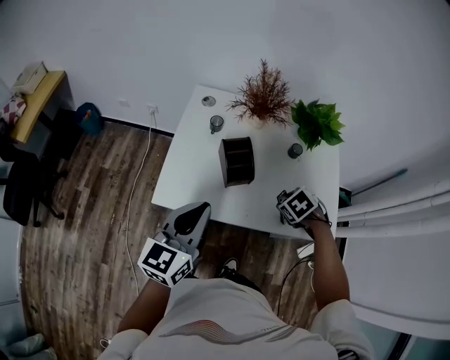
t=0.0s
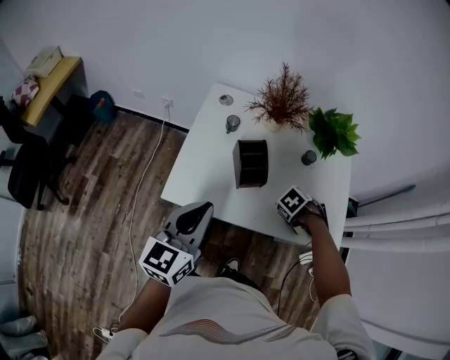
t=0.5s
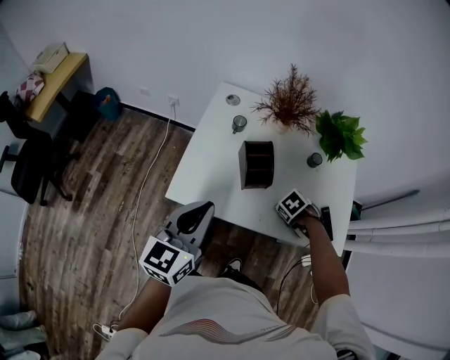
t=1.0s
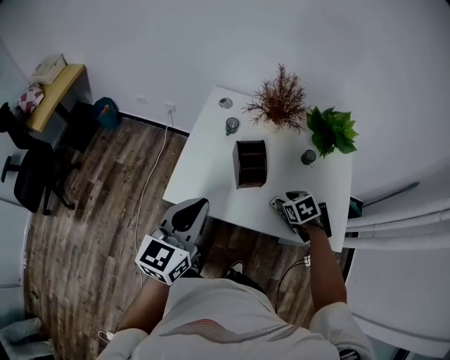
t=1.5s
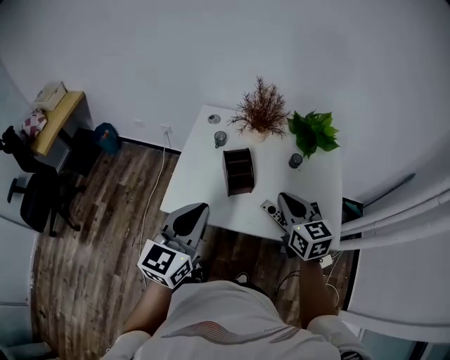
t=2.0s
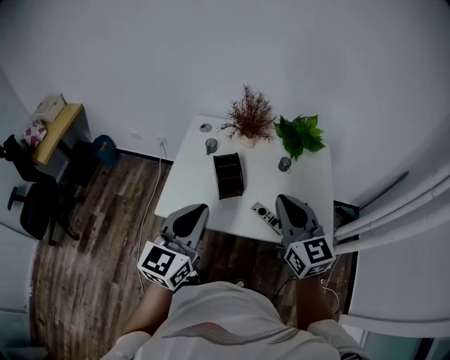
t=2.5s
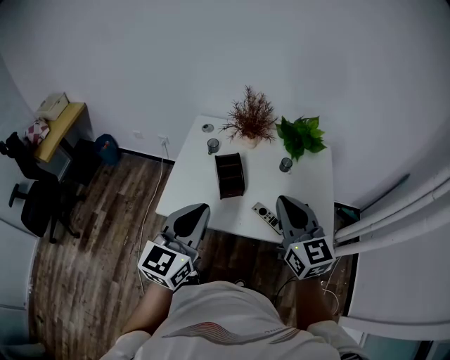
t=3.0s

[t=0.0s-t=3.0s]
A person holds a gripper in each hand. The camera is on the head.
t=0.0s to t=1.5s: The right gripper goes downward and returns, approximately 10 cm each way.
t=1.5s to t=3.0s: The left gripper moves to the right and upward, some 10 cm; the right gripper heads upward, covering approximately 25 cm, angles its fingers upward, by approximately 60 degrees, and closes up.

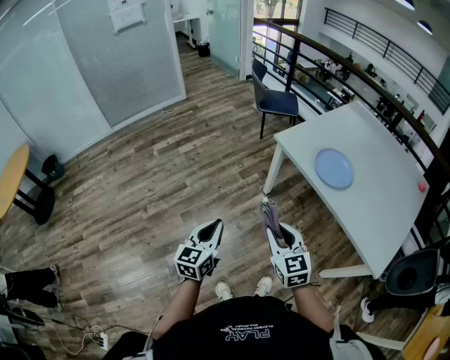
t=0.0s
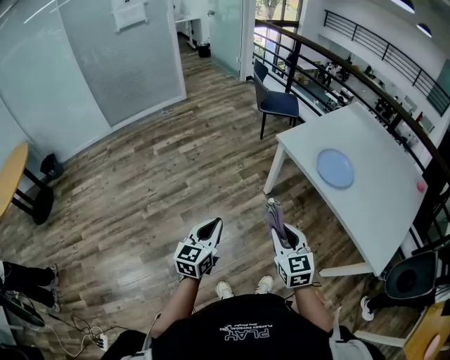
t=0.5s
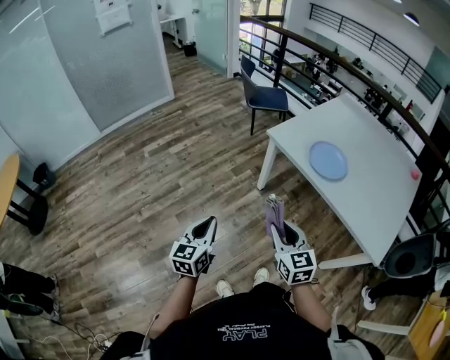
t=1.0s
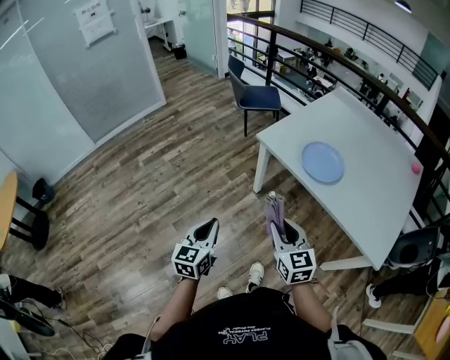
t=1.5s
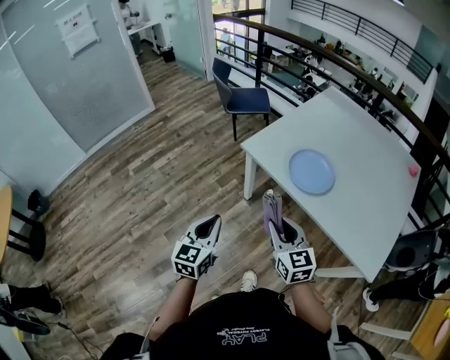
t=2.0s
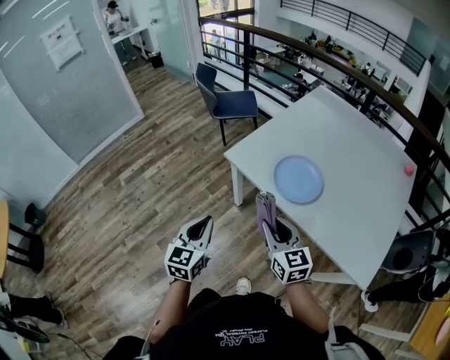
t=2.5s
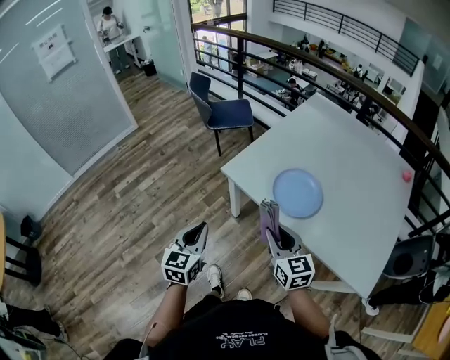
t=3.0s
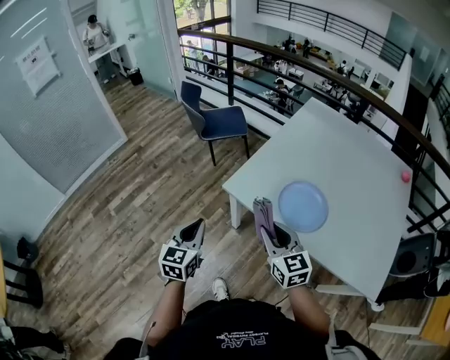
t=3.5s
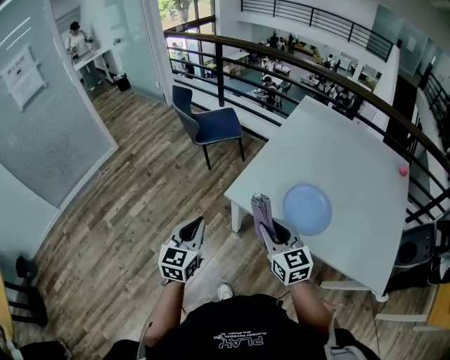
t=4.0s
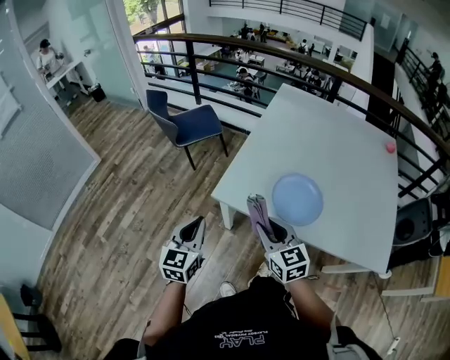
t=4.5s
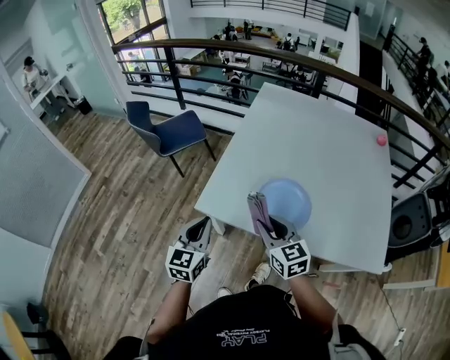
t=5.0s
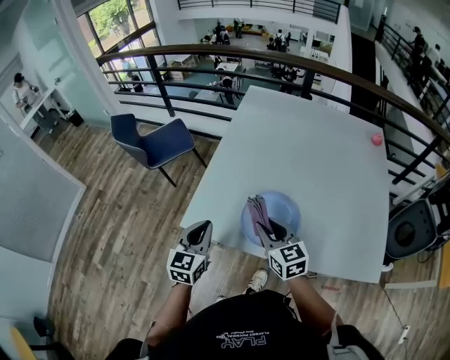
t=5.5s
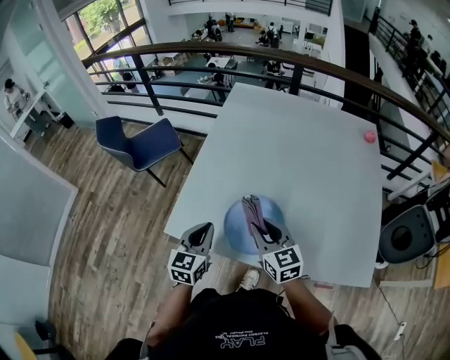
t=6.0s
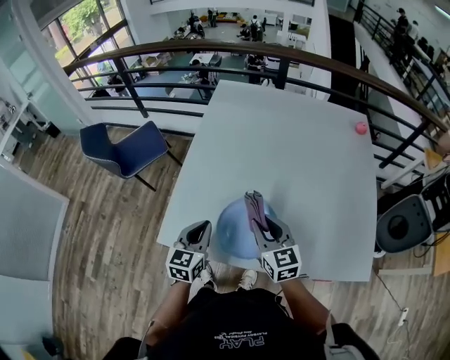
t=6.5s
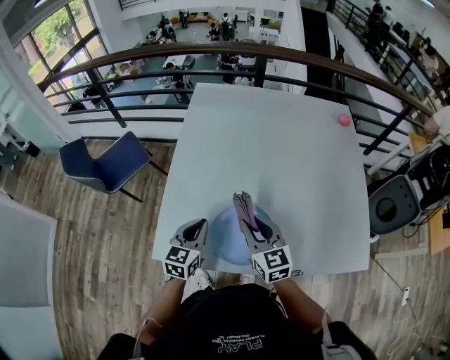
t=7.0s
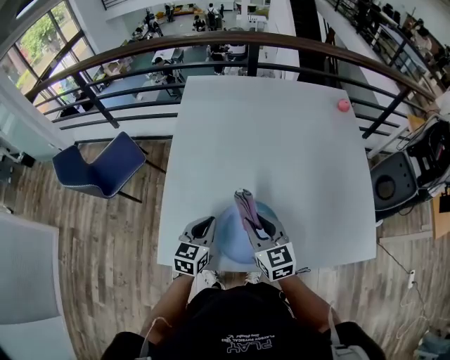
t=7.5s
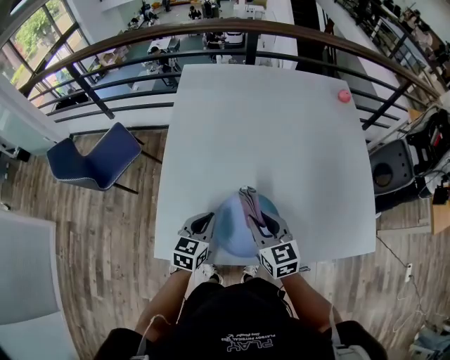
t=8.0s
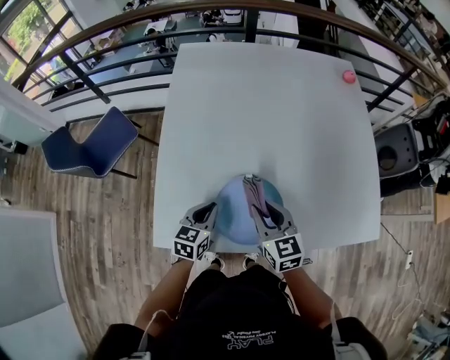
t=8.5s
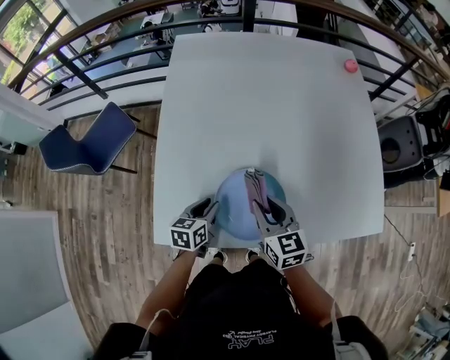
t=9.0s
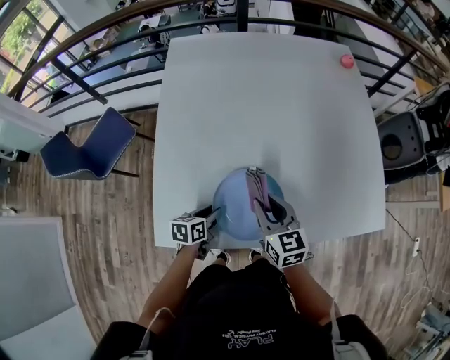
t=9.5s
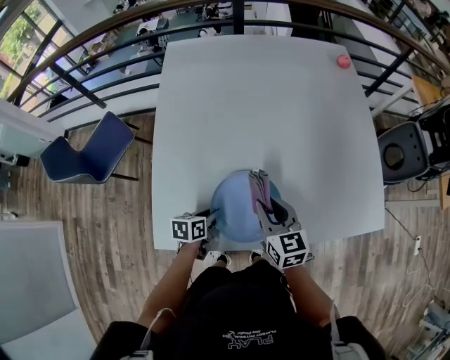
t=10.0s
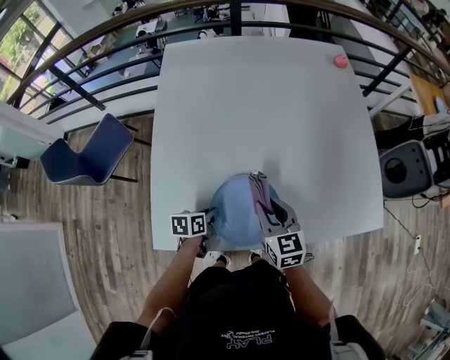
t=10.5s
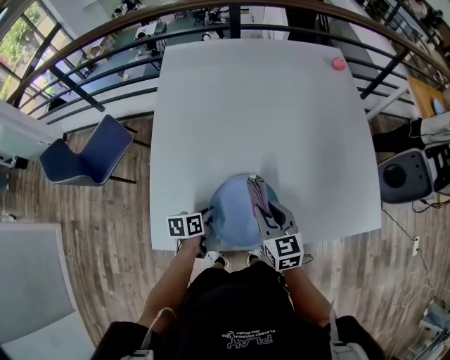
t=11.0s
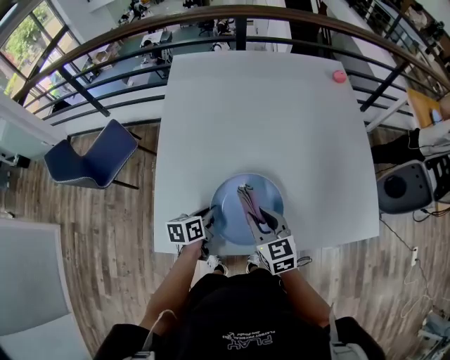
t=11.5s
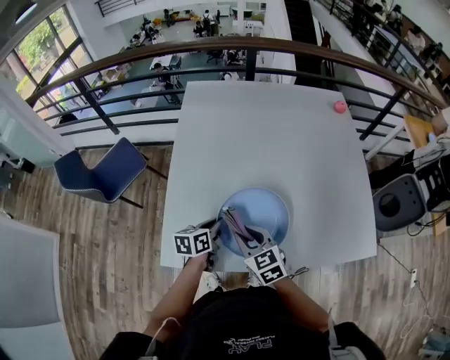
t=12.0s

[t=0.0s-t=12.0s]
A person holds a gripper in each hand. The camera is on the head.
t=0.0s to t=2.0s: Both grippers move forward and to the right, some 15 cm.
t=2.0s to t=4.0s: Both grippers travel together forward, some 25 cm.
t=4.0s to t=6.0s: Both grippers travel together to the right and forward, approximately 30 cm. The left gripper turns by roughly 20 degrees.
t=6.0s to t=8.0s: The right gripper goes approximately 5 cm forward. The left gripper moves forward and downward, some 15 cm, and changes its angle by roughly 20 degrees.
t=8.0s to t=10.0s: The left gripper moves downward, approximately 10 cm, and swivels approximately 40 degrees, while the right gripper changes place by some 5 cm.
t=10.0s to t=12.0s: The right gripper heads to the left and backward, covering approximately 10 cm, and swivels roughly 20 degrees. Meanwhile the left gripper moves upward, about 10 cm.

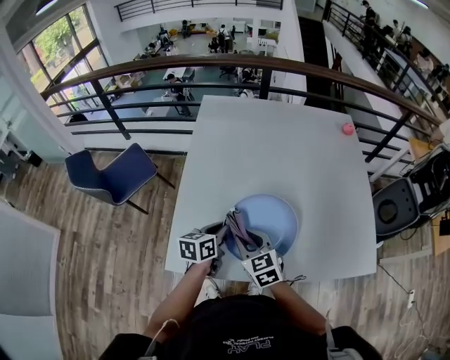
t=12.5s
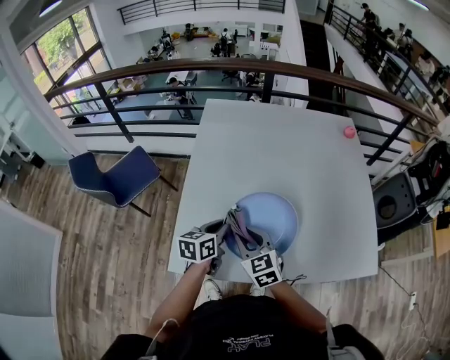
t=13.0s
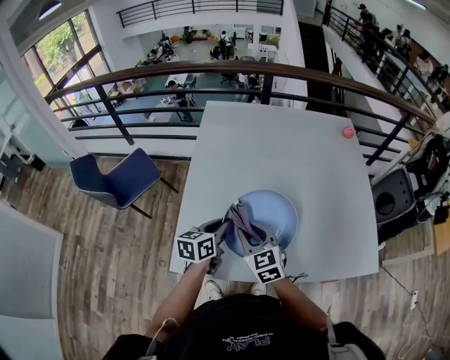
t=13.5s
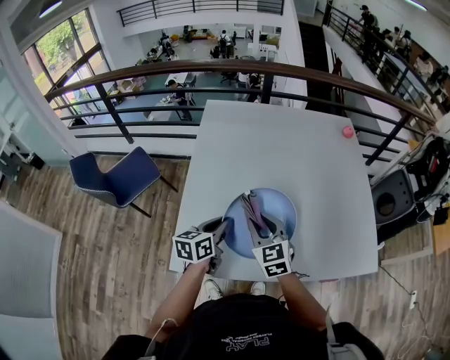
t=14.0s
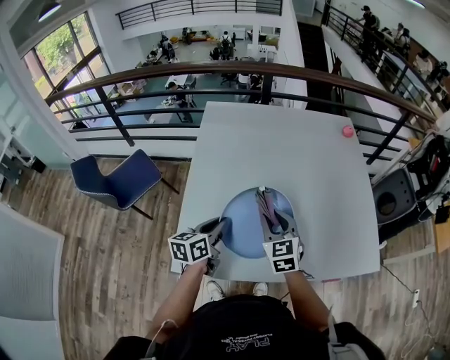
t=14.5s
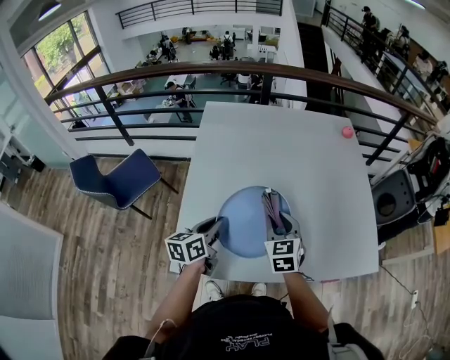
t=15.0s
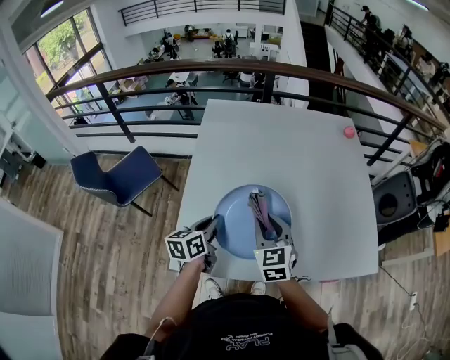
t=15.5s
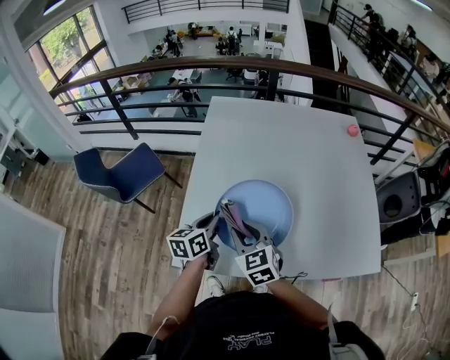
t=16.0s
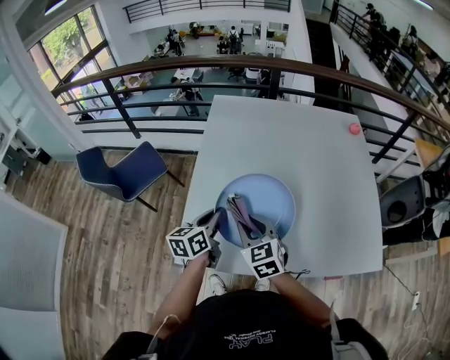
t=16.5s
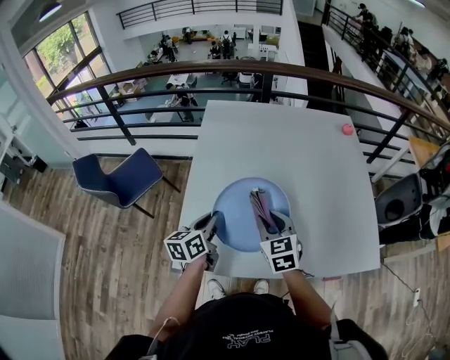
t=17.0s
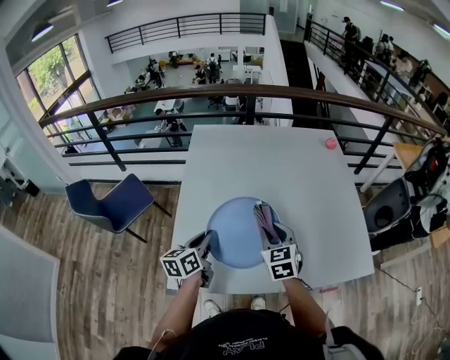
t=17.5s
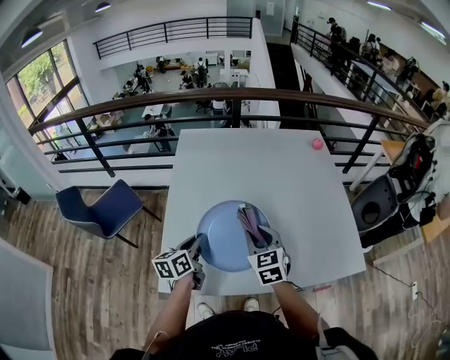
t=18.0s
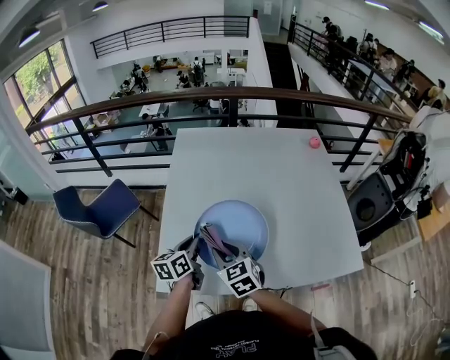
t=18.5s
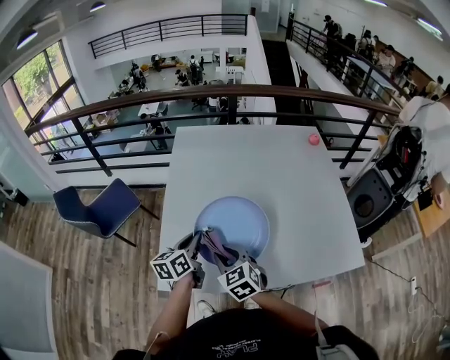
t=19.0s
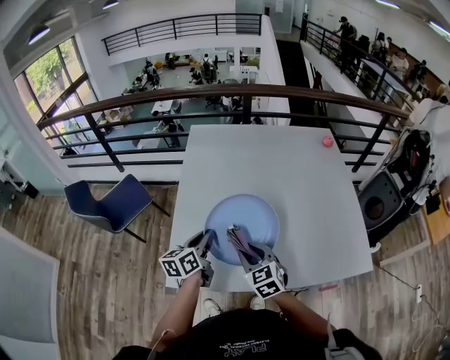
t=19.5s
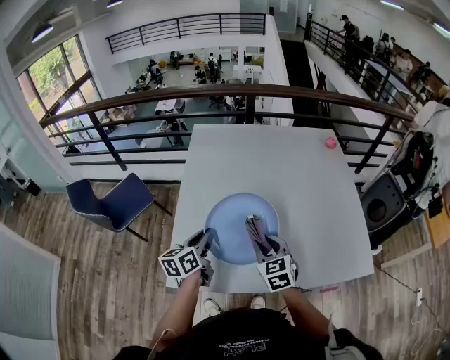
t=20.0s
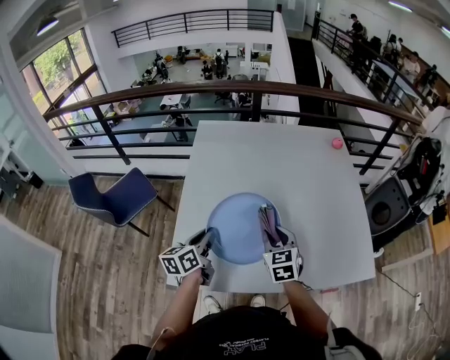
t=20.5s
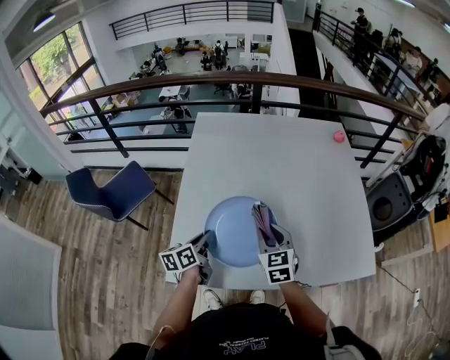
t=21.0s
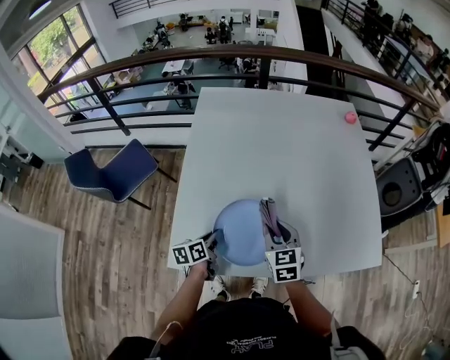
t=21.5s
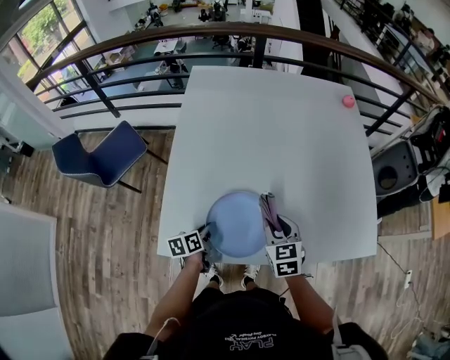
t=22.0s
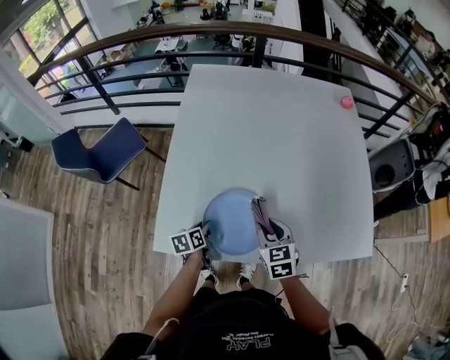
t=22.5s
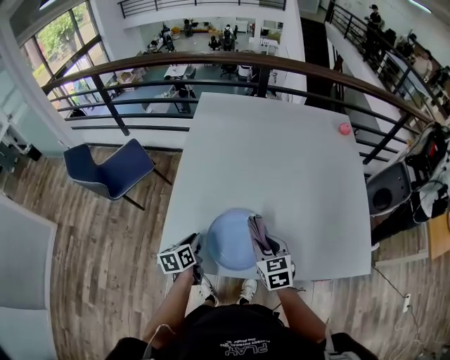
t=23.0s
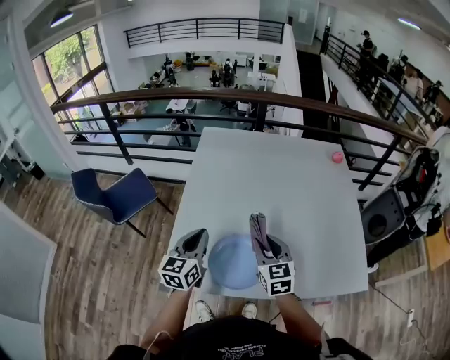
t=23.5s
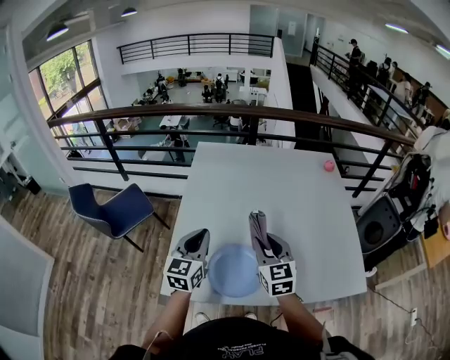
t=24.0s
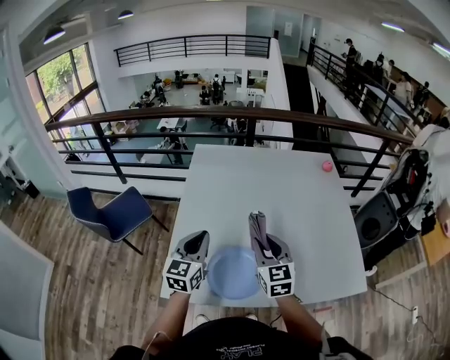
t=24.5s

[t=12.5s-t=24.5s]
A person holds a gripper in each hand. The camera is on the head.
t=12.5s to t=14.5s: The right gripper goes about 10 cm to the right, forward and upward, while the left gripper moves roughly 5 cm.
t=14.5s to t=16.5s: The right gripper shifts about 10 cm to the left.
t=16.5s to t=18.5s: The right gripper moves roughly 15 cm to the right and comes back.
t=18.5s to t=20.5s: The right gripper travels to the right and forward by about 15 cm.
t=20.5s to t=22.5s: The right gripper travels downward and backward by roughly 10 cm. The left gripper heads downward, covering some 25 cm, and rotates approximately 30 degrees.
t=22.5s to t=24.5s: The left gripper is displaced upward by some 30 cm, angles its fingers upward, by some 40 degrees, and closes its fingers, while the right gripper travels upward by approximately 20 cm, and turns by approximately 30 degrees.
